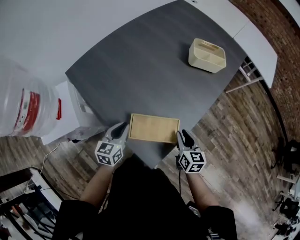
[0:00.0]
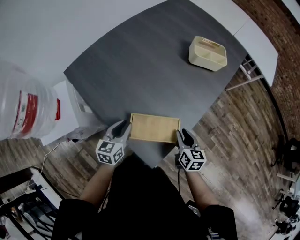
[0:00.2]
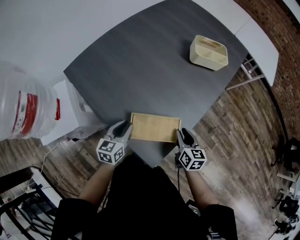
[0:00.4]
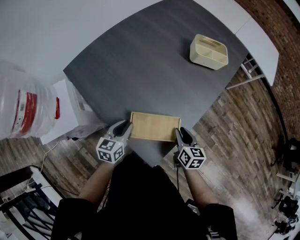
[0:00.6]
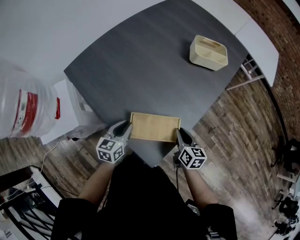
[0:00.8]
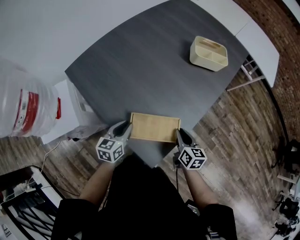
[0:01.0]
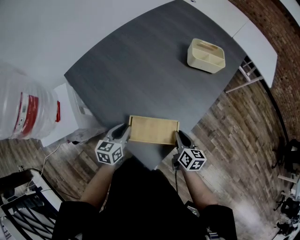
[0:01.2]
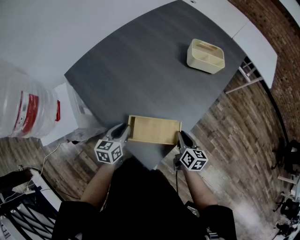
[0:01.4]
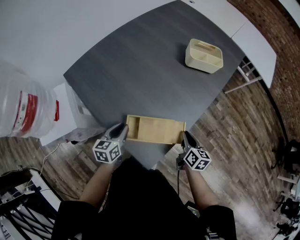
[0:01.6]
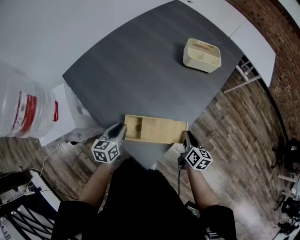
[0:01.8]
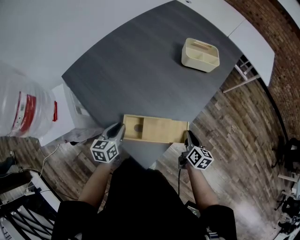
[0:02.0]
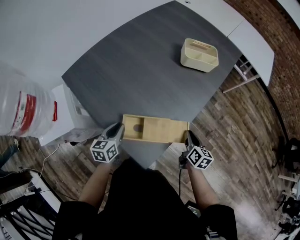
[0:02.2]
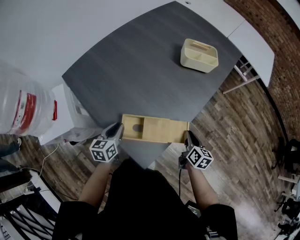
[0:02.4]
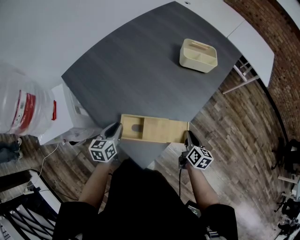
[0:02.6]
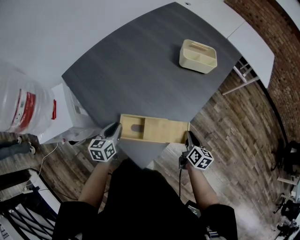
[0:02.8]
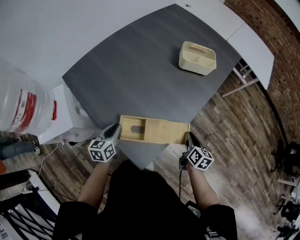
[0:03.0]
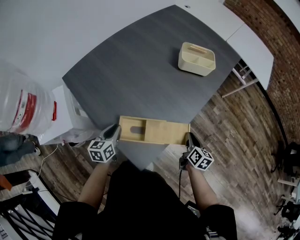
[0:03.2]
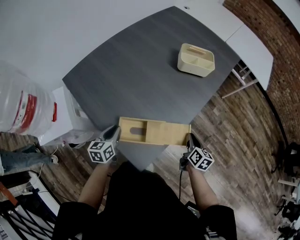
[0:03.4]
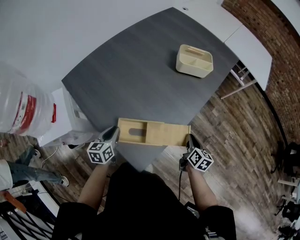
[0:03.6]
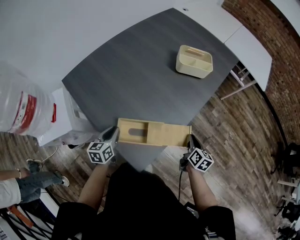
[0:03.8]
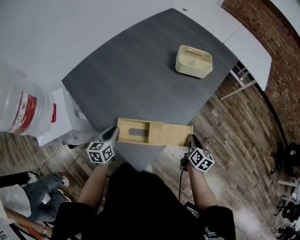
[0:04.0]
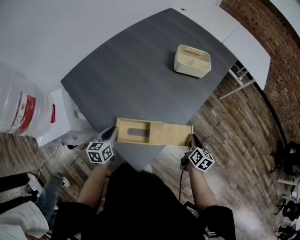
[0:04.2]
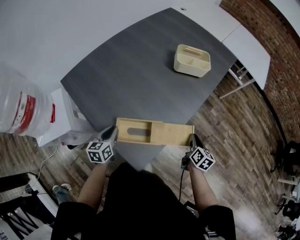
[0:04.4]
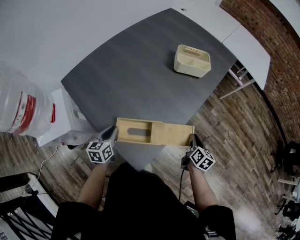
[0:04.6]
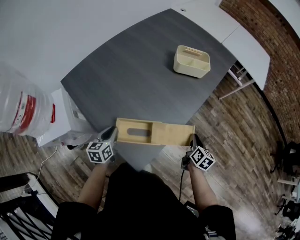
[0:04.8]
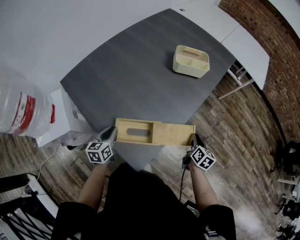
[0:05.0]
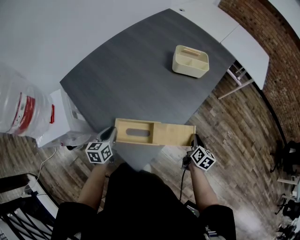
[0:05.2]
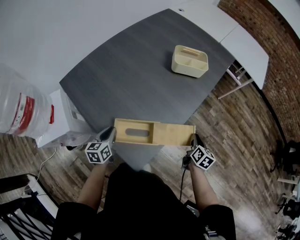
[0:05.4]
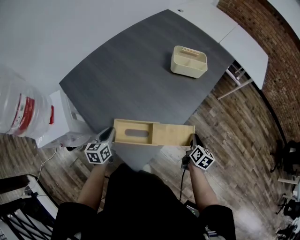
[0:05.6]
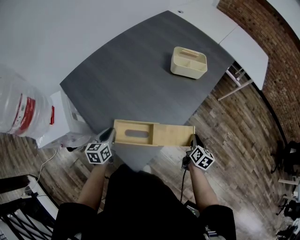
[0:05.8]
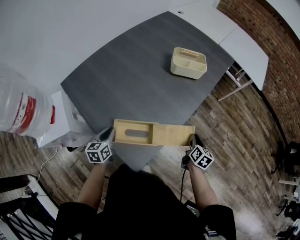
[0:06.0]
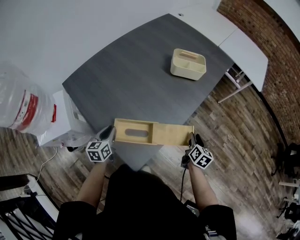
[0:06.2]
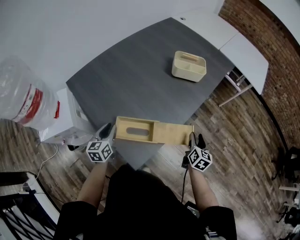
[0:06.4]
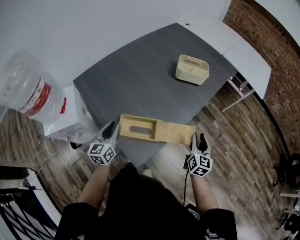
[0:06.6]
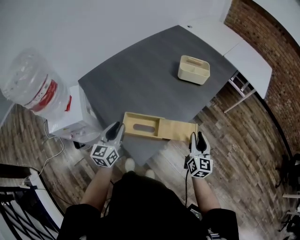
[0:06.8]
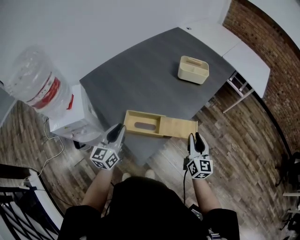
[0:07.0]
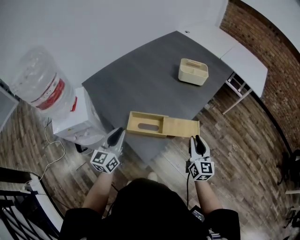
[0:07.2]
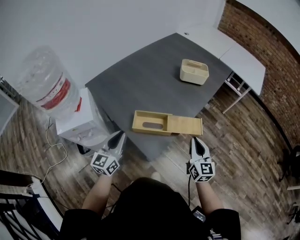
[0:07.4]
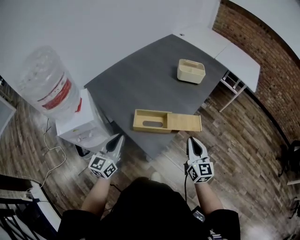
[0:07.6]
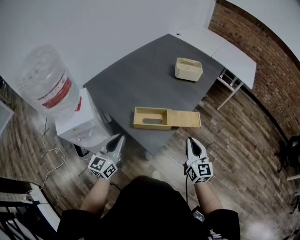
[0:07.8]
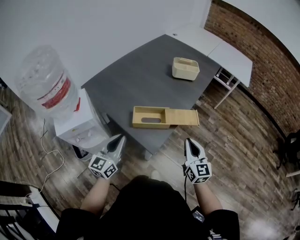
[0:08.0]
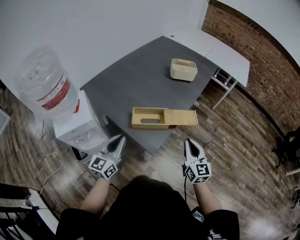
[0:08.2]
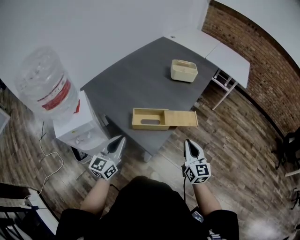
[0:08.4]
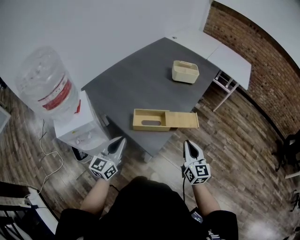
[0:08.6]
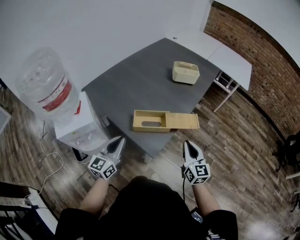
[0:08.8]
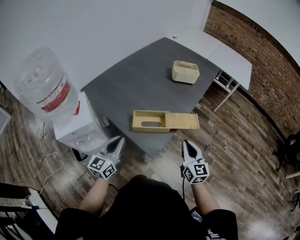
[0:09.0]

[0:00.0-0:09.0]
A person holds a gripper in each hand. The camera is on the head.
0:00.0 to 0:01.6: The grippers move only a little.
0:01.6 to 0:03.0: The right gripper is displaced to the right by some 5 cm.
0:03.0 to 0:04.4: There are only small adjustments of the grippers.
0:04.4 to 0:06.0: The grippers make only small movements.
0:06.0 to 0:07.6: The right gripper travels upward, to the left and backward by approximately 25 cm, points its fingers approximately 30 degrees further upward, and opens and closes again. Meanwhile the left gripper is displaced upward and backward by approximately 20 cm, and points its fingers about 30 degrees further upward.
0:07.6 to 0:09.0: There are only small adjustments of the grippers.

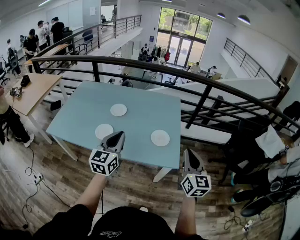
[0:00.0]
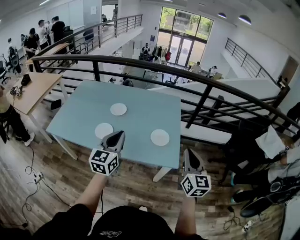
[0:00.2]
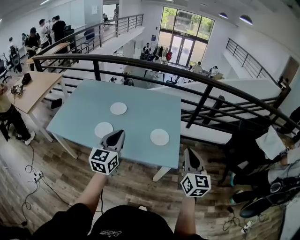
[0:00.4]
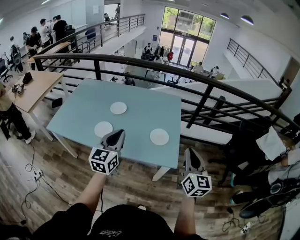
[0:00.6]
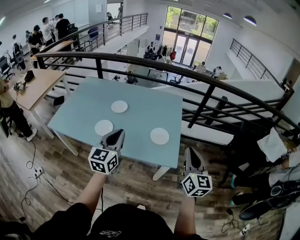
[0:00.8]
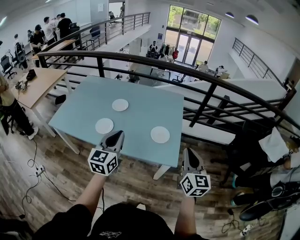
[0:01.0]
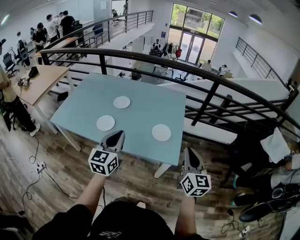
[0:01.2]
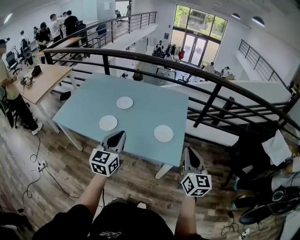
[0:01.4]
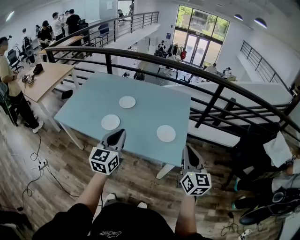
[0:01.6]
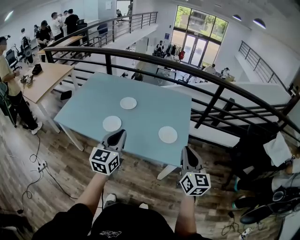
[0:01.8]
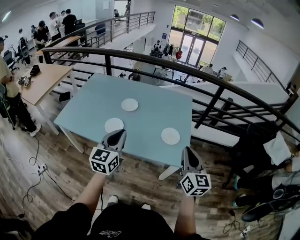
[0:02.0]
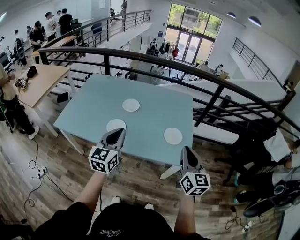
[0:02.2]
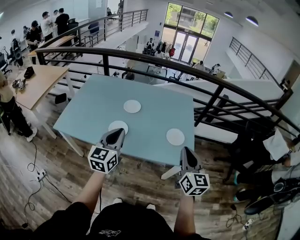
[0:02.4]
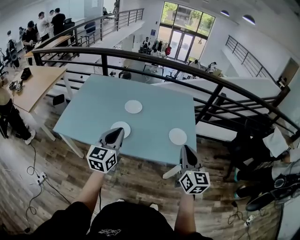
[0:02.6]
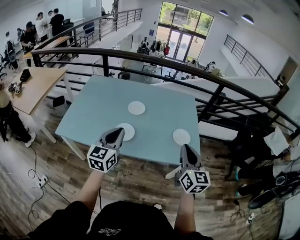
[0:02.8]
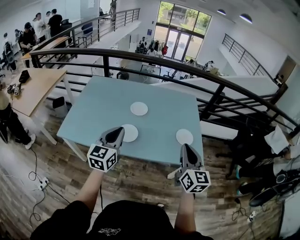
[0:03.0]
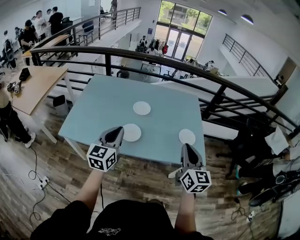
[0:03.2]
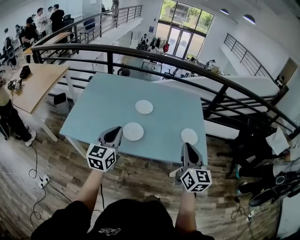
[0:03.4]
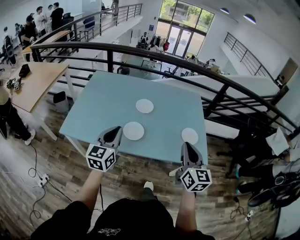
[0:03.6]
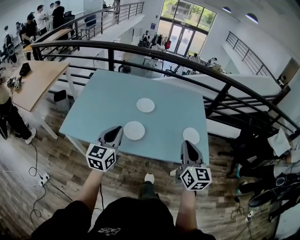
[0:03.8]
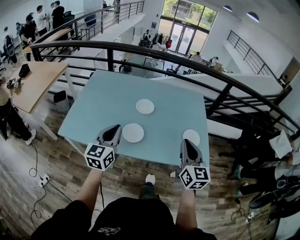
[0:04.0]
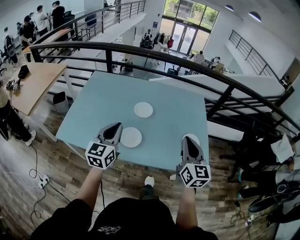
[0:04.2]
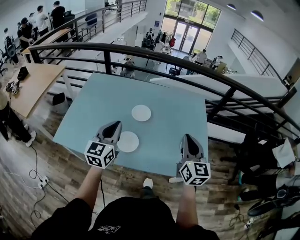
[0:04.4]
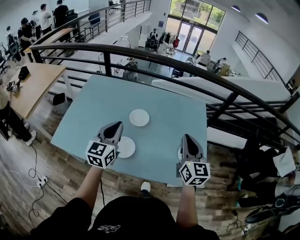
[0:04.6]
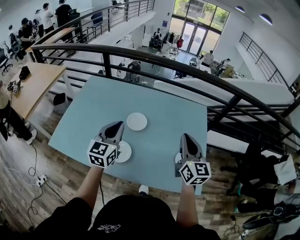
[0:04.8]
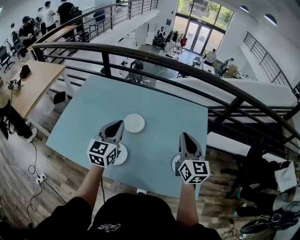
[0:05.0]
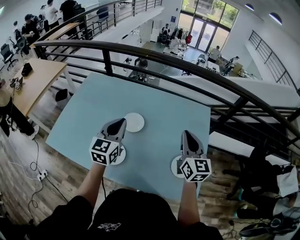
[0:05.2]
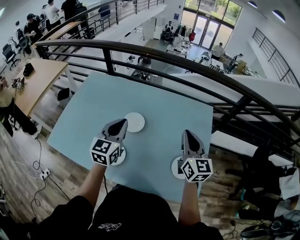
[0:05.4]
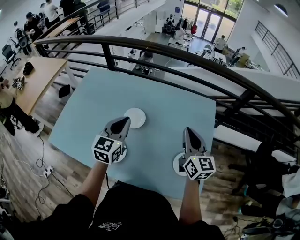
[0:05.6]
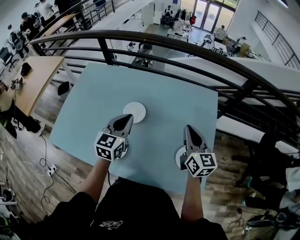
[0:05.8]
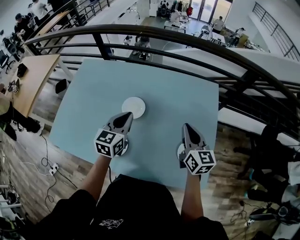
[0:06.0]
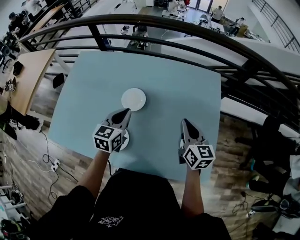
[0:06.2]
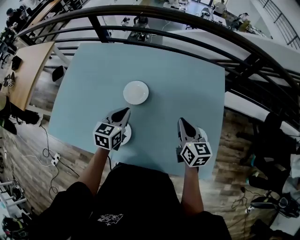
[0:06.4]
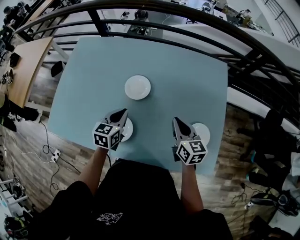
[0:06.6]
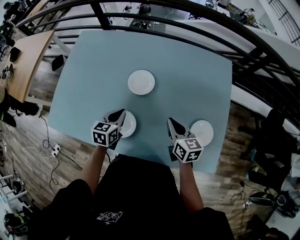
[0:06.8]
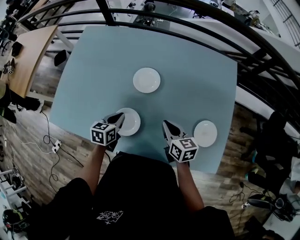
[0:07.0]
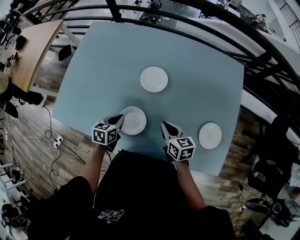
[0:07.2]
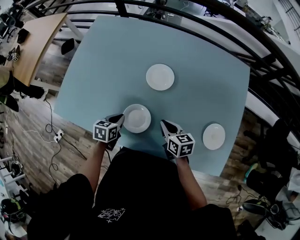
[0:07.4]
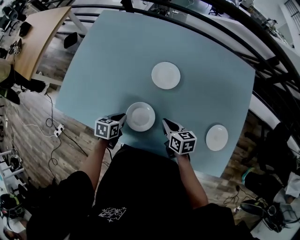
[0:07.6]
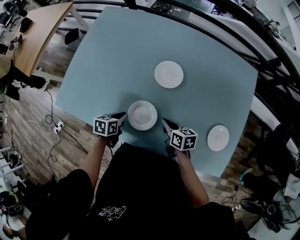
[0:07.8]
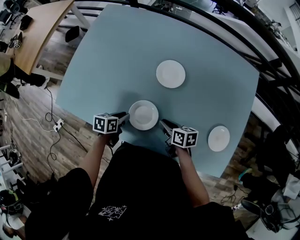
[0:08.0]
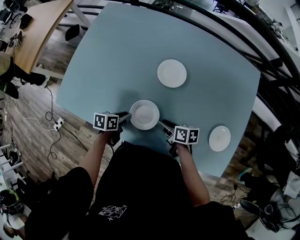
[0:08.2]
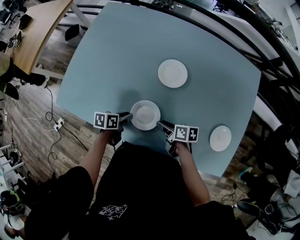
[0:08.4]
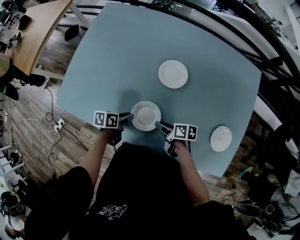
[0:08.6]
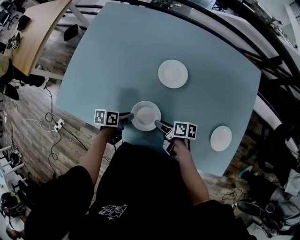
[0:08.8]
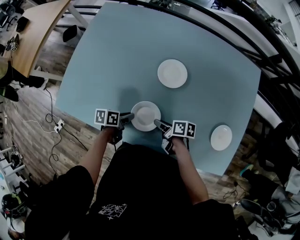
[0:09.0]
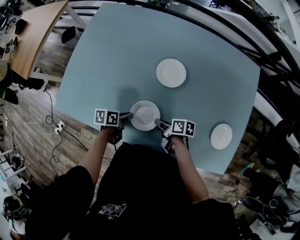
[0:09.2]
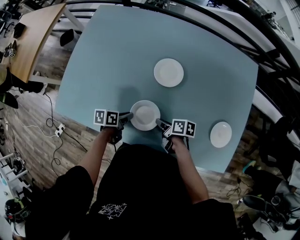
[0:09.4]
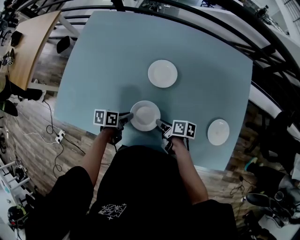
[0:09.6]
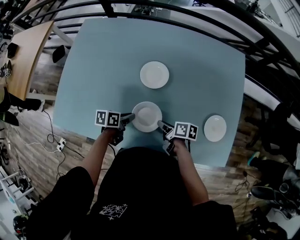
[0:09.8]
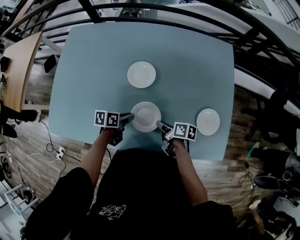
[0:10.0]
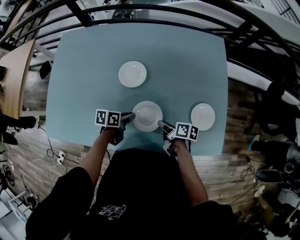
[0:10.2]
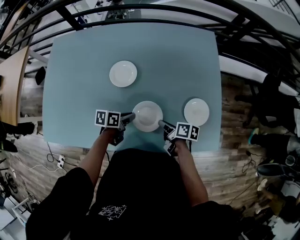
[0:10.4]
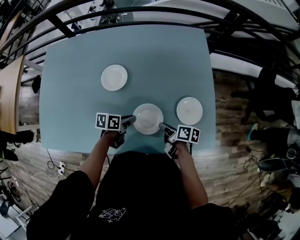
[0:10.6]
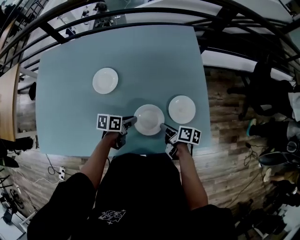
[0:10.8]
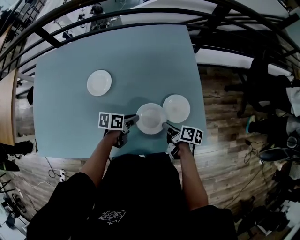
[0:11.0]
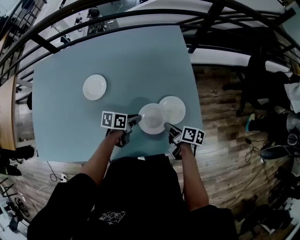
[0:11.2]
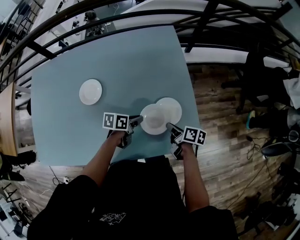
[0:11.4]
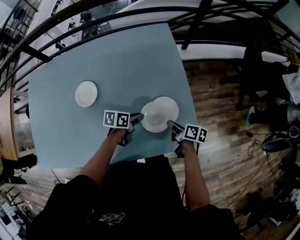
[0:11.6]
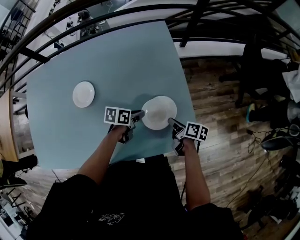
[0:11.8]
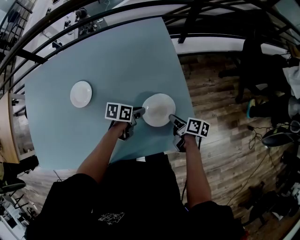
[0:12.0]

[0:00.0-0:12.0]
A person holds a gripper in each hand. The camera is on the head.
0:00.0 to 0:01.6: There are only small adjustments of the grippers.
0:01.6 to 0:03.0: The grippers both shift to the left by some 25 cm.
0:03.0 to 0:04.4: Both grippers travel together forward, about 15 cm.
0:04.4 to 0:06.0: The left gripper moves forward, to the right and downward, about 25 cm. The right gripper travels forward, downward and to the right by about 25 cm.
0:06.0 to 0:07.6: The right gripper moves to the left and downward, approximately 35 cm, and turns by roughly 40 degrees; the left gripper heads downward and to the left, covering about 35 cm, and tilts its fingers about 30 degrees downward.
0:07.6 to 0:09.0: The right gripper heads downward, covering some 5 cm, changes its angle by about 40 degrees, and opens; the left gripper swivels roughly 30 degrees.
0:09.0 to 0:10.4: The right gripper ends up roughly 20 cm from where it was, turns by some 20 degrees, and closes its fingers. Meanwhile the left gripper ends up approximately 20 cm from where it was, and changes its angle by about 20 degrees.
0:10.4 to 0:12.0: The right gripper goes roughly 25 cm to the right, and swivels about 20 degrees. The left gripper goes about 30 cm to the right and forward.

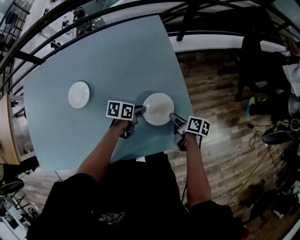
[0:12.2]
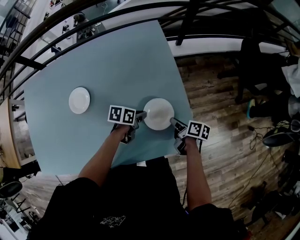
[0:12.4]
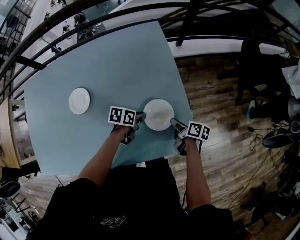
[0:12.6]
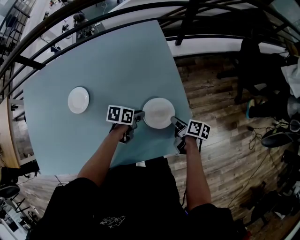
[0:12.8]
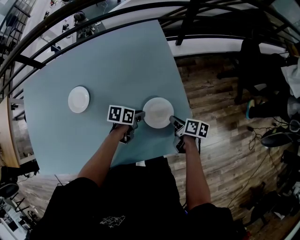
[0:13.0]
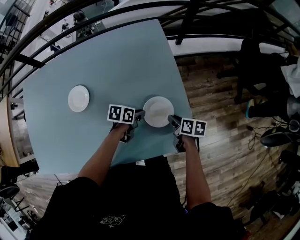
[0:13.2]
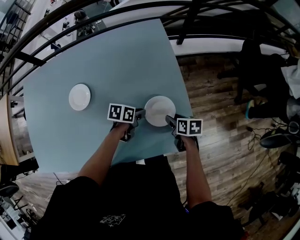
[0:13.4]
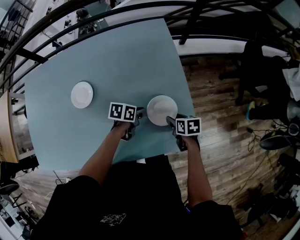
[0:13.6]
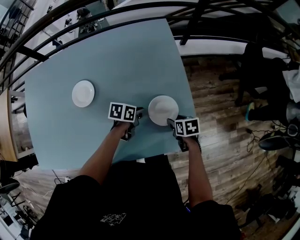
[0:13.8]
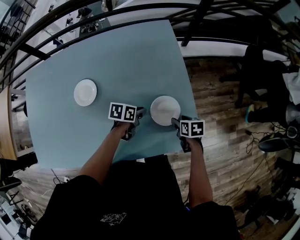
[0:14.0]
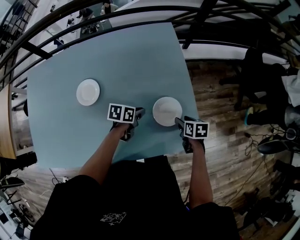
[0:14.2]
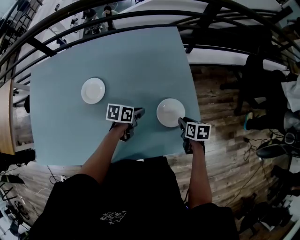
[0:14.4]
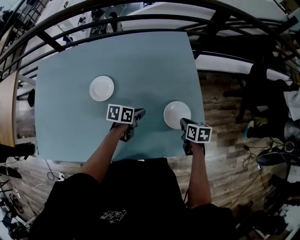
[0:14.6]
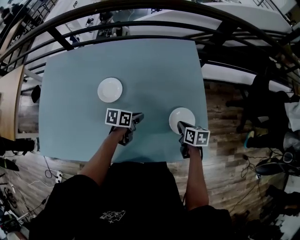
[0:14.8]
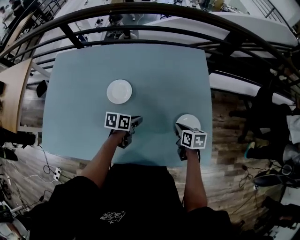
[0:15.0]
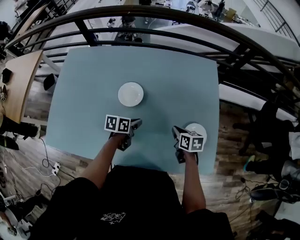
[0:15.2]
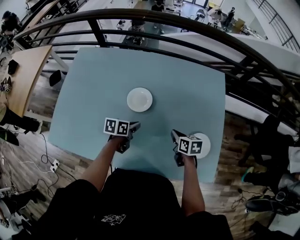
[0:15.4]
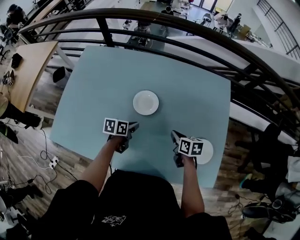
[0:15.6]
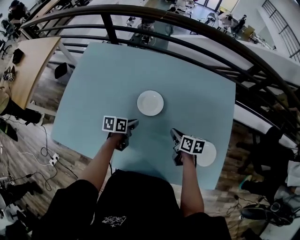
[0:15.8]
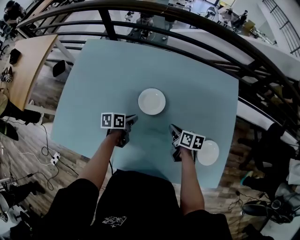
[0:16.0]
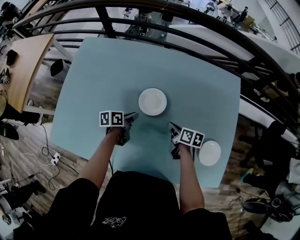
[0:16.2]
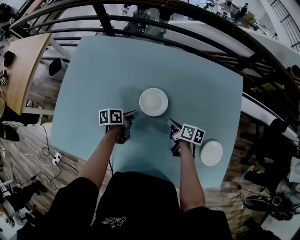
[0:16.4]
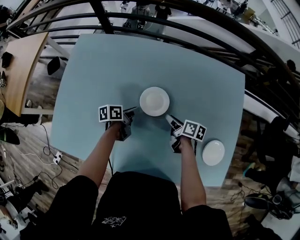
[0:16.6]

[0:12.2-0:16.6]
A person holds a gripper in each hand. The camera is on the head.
0:12.2 to 0:13.6: The right gripper changes its angle by some 40 degrees, and opens.
0:13.6 to 0:15.2: Both grippers travel together to the left, approximately 20 cm. The left gripper turns by about 20 degrees. Meanwhile the right gripper closes up.
0:15.2 to 0:16.6: The two grippers go approximately 20 cm to the left and forward. The right gripper rotates about 30 degrees, and opens. The left gripper rotates roughly 20 degrees.
